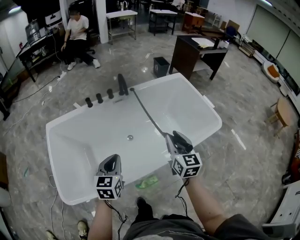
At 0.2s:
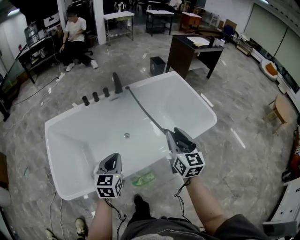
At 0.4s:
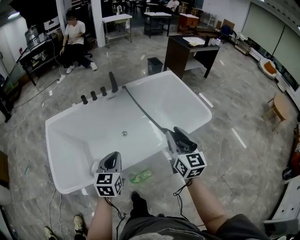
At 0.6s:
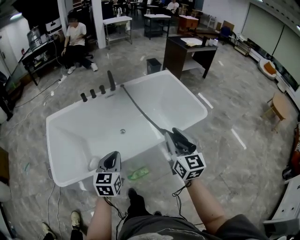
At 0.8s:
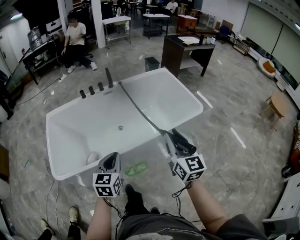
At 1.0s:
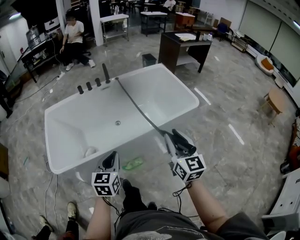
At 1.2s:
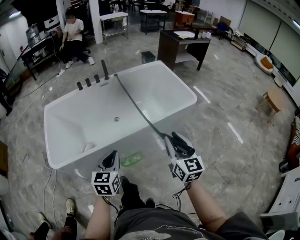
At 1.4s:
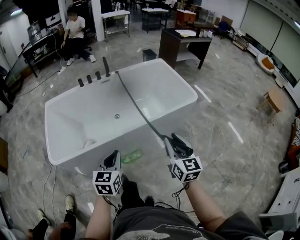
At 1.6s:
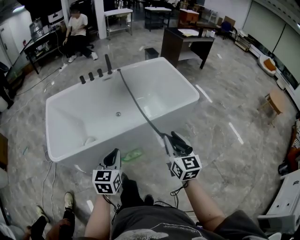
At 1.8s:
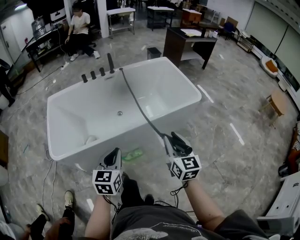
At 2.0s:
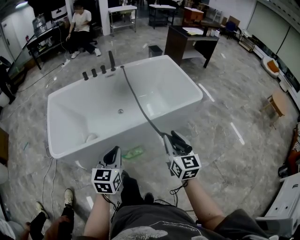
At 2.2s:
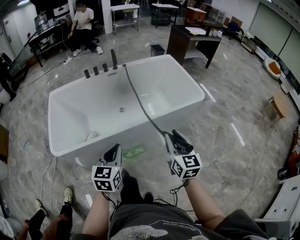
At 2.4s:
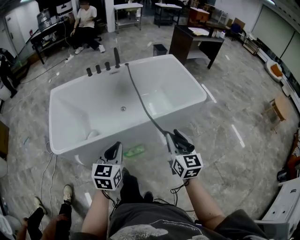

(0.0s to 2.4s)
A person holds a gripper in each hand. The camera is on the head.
0.0s - 1.2s: Both grippers travel together backward and to the right, some 35 cm.
1.2s - 2.4s: There are only small adjustments of the grippers.

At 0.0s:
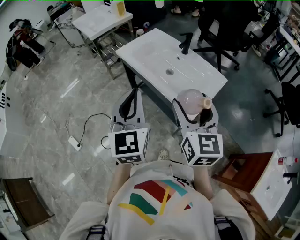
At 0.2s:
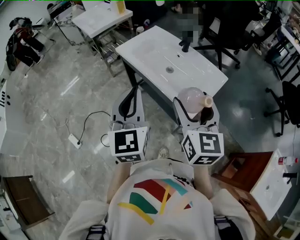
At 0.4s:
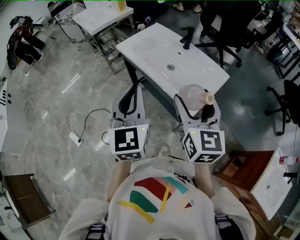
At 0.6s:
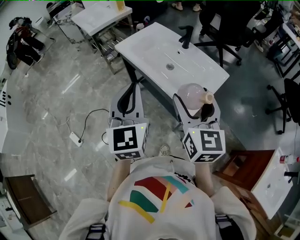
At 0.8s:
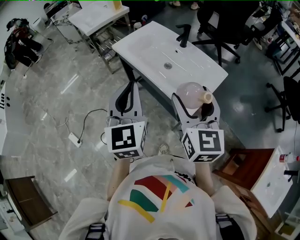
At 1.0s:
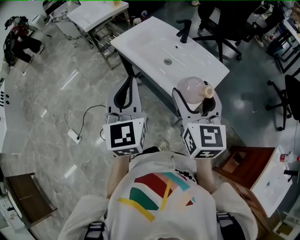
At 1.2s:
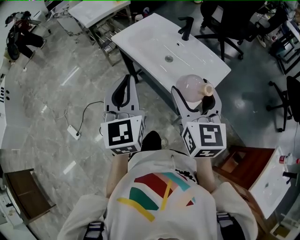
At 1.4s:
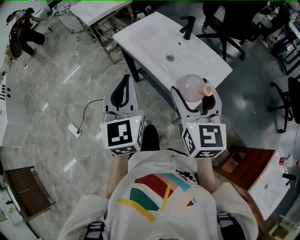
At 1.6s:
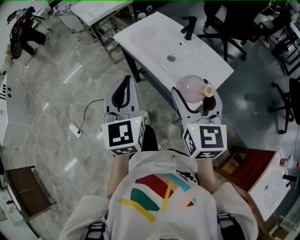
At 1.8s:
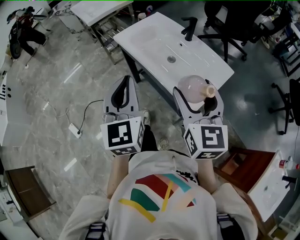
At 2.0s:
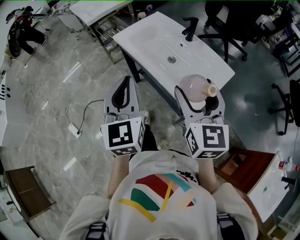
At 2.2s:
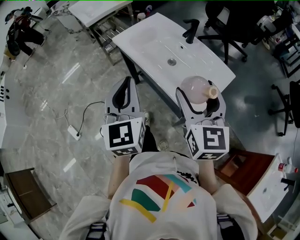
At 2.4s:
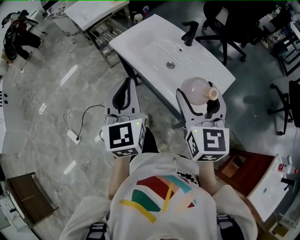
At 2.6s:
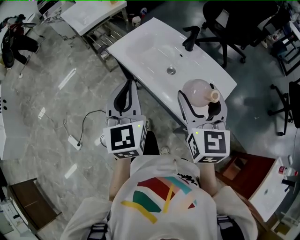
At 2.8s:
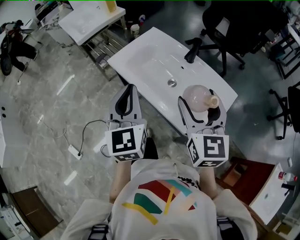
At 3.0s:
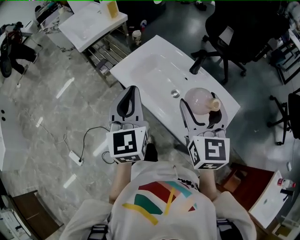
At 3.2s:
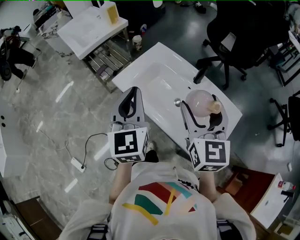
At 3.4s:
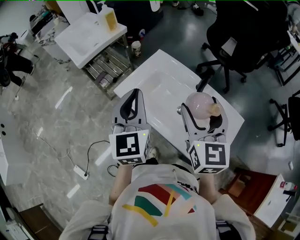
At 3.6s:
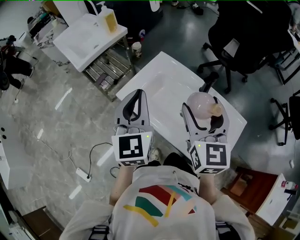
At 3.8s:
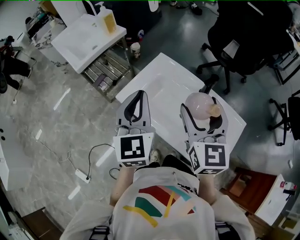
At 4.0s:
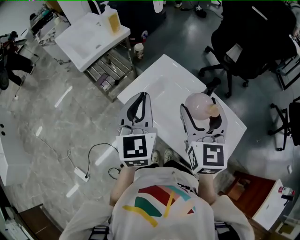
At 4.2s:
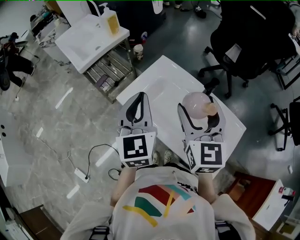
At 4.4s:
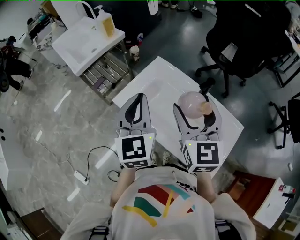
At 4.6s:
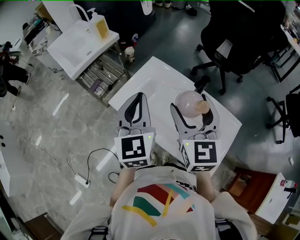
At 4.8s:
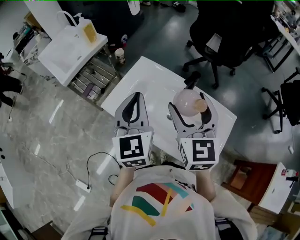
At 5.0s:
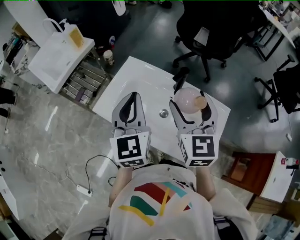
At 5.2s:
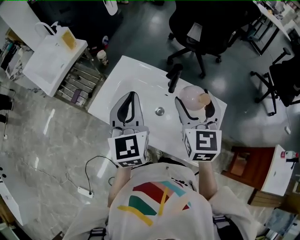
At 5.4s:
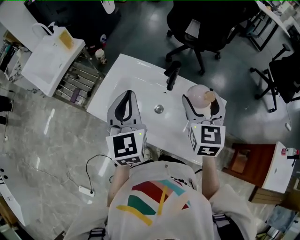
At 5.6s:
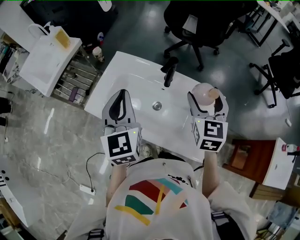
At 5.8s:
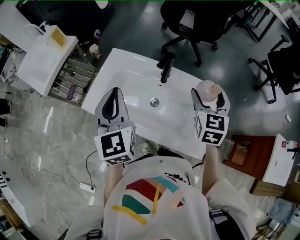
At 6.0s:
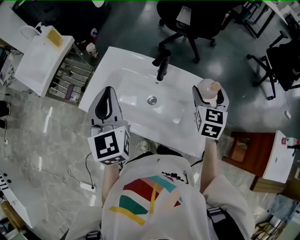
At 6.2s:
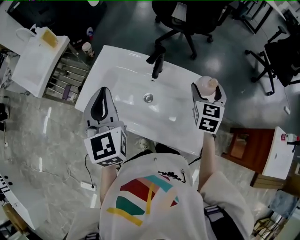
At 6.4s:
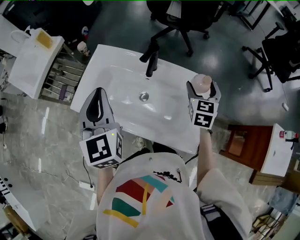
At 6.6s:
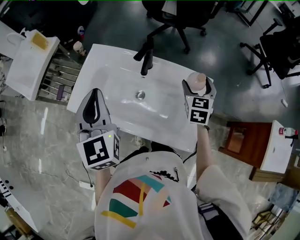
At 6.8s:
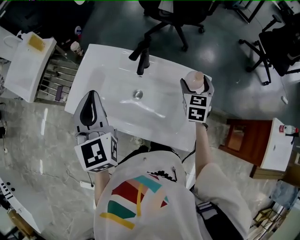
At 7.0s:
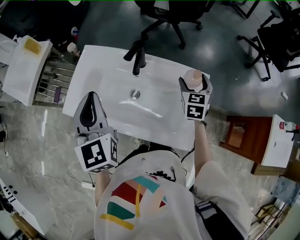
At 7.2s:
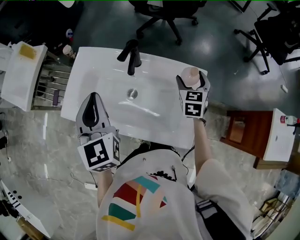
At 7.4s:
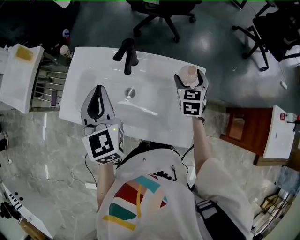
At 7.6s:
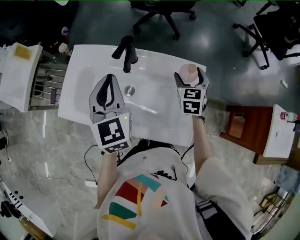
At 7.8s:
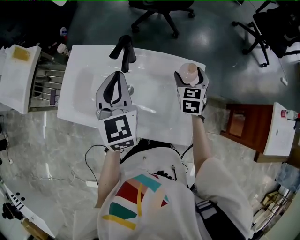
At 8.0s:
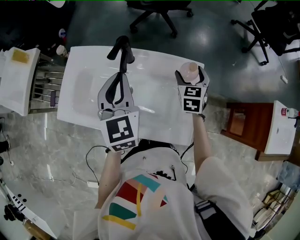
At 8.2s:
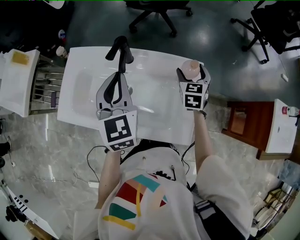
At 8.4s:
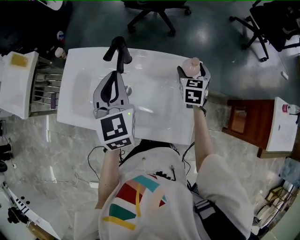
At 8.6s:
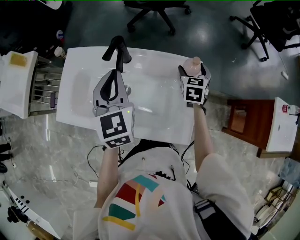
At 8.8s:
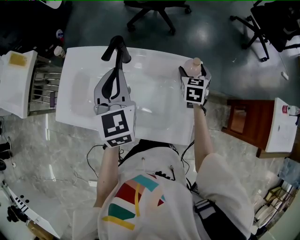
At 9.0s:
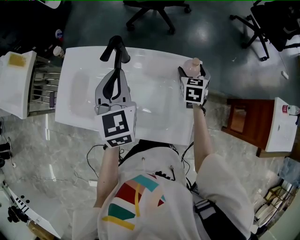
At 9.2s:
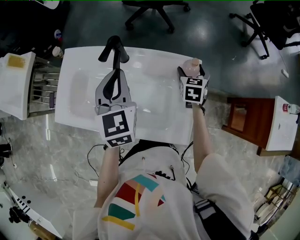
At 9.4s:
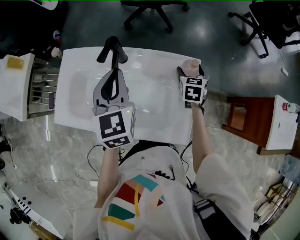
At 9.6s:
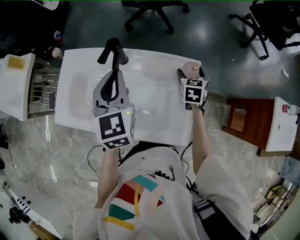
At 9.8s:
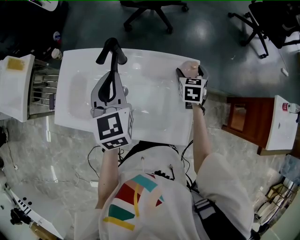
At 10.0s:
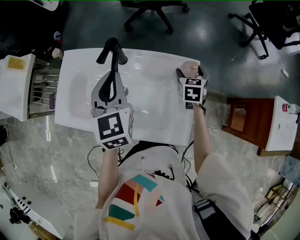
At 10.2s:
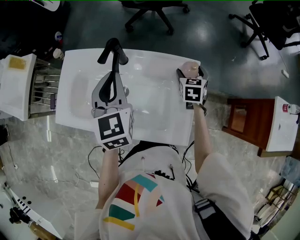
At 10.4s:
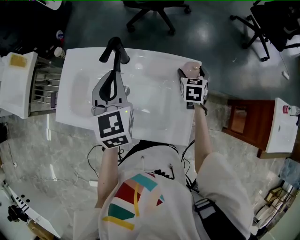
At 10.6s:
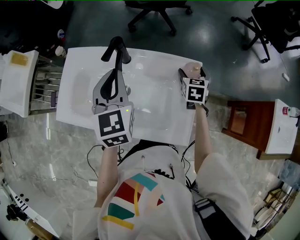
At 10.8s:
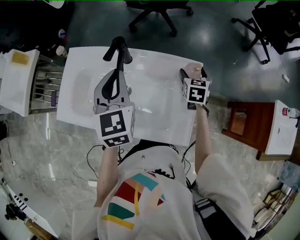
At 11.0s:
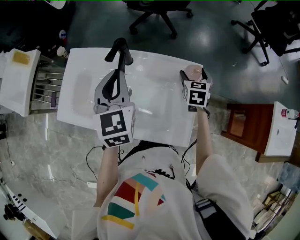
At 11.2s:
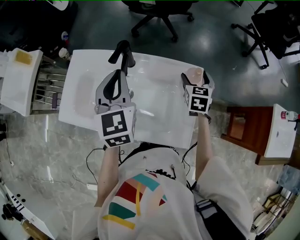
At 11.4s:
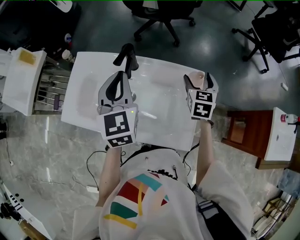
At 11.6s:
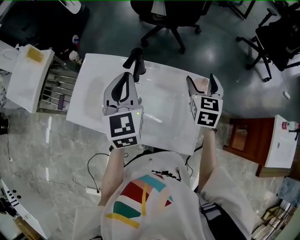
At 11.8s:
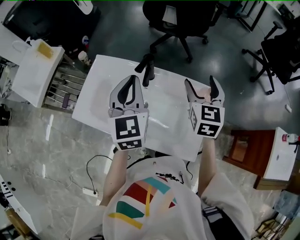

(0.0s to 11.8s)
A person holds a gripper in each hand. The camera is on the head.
0.0s - 1.4s: The grippers make only small movements.
1.4s - 3.0s: Both grippers move forward, about 20 cm.
3.0s - 4.4s: The right gripper heads forward and to the left, covering roughly 15 cm, while the left gripper travels forward by roughly 15 cm.
4.4s - 6.0s: The right gripper heads to the right and downward, covering approximately 30 cm, and rotates some 40 degrees. Meanwhile the left gripper shifts approximately 5 cm to the right.
6.0s - 7.4s: The left gripper moves to the right and downward, roughly 10 cm, while the right gripper is displaced downward and to the right by about 15 cm.
7.4s - 8.8s: The right gripper heads to the right, covering approximately 5 cm. Meanwhile the left gripper travels to the right and forward by approximately 10 cm.
8.8s - 10.4s: There are only small adjustments of the grippers.
10.4s - 11.8s: The left gripper goes roughly 5 cm upward, while the right gripper travels upward and to the left by approximately 25 cm, and turns by about 30 degrees.

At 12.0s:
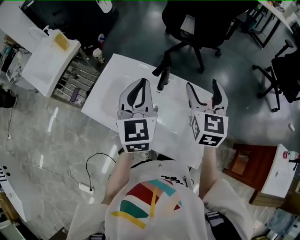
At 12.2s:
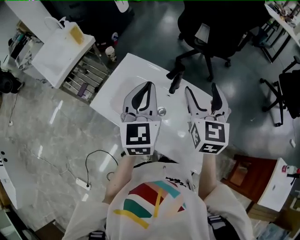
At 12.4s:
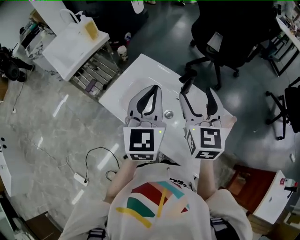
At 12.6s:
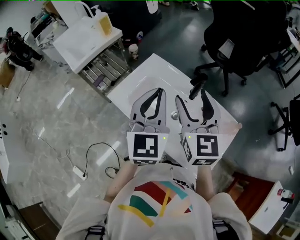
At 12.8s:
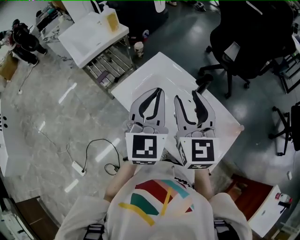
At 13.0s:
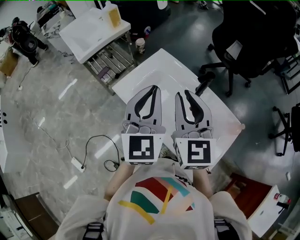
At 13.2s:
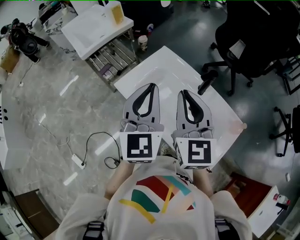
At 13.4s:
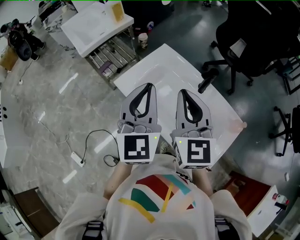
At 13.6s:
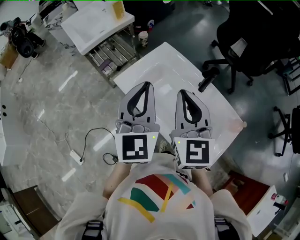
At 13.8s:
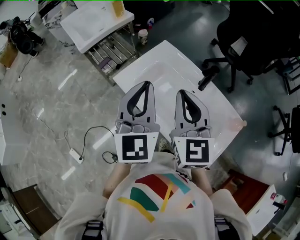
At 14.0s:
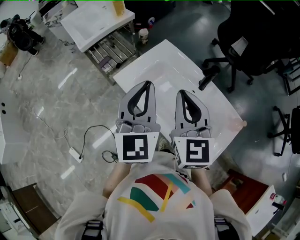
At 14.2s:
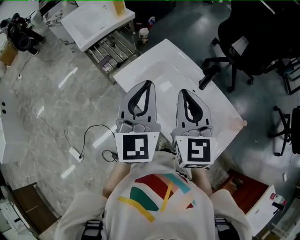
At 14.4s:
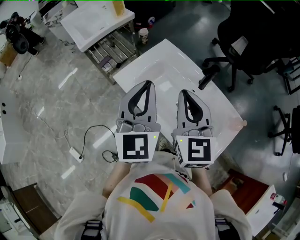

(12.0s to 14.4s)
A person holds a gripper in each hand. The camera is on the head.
12.0s - 13.2s: The left gripper moves to the left and backward, approximately 15 cm, while the right gripper heads to the left, covering about 25 cm, rotates approximately 30 degrees, and closes its fingers.
13.2s - 14.4s: The grippers make only small movements.

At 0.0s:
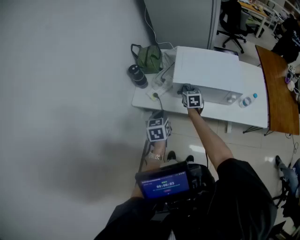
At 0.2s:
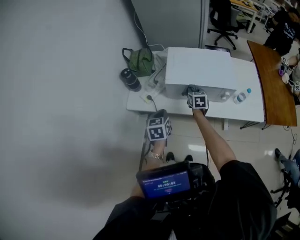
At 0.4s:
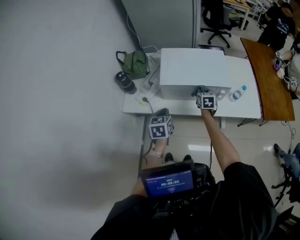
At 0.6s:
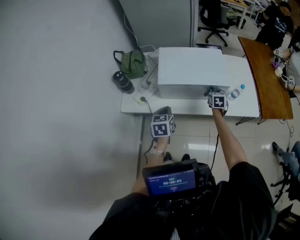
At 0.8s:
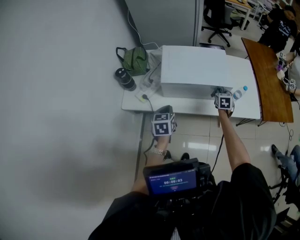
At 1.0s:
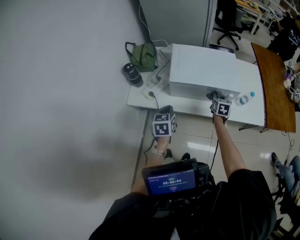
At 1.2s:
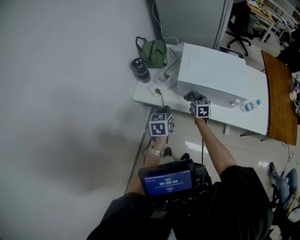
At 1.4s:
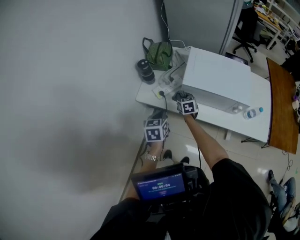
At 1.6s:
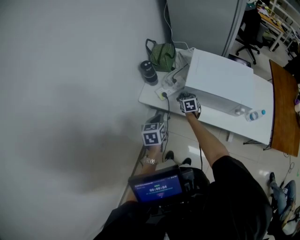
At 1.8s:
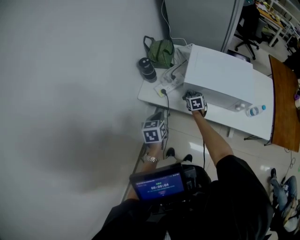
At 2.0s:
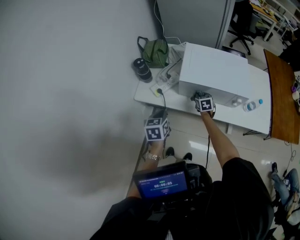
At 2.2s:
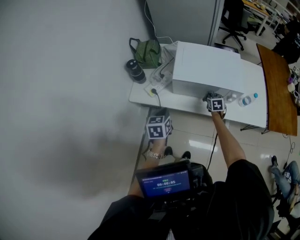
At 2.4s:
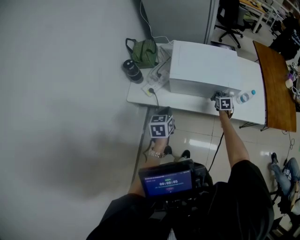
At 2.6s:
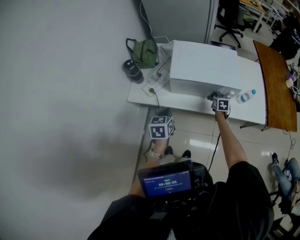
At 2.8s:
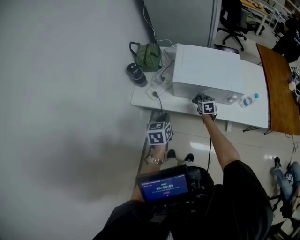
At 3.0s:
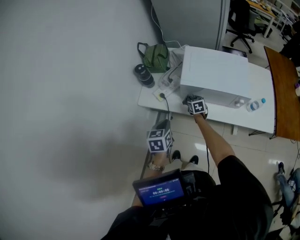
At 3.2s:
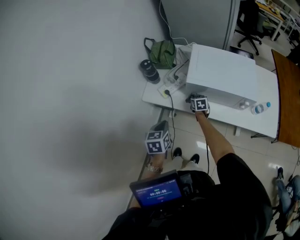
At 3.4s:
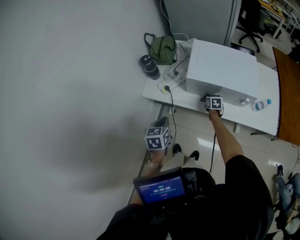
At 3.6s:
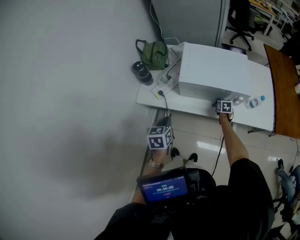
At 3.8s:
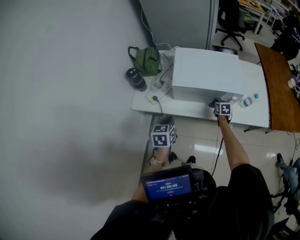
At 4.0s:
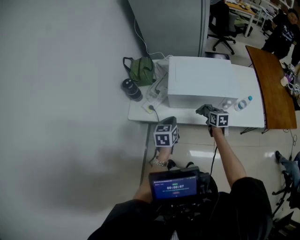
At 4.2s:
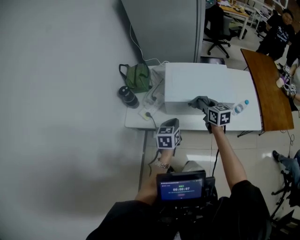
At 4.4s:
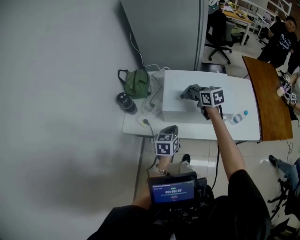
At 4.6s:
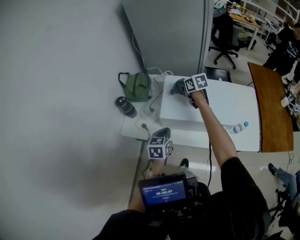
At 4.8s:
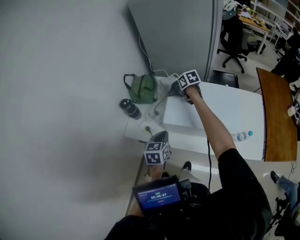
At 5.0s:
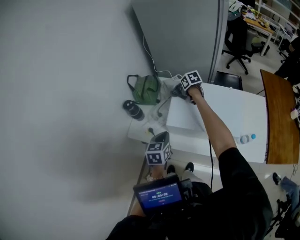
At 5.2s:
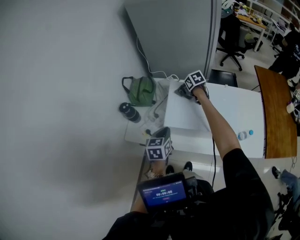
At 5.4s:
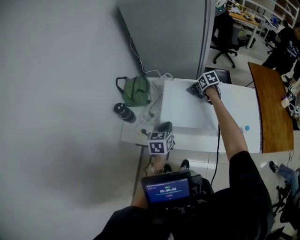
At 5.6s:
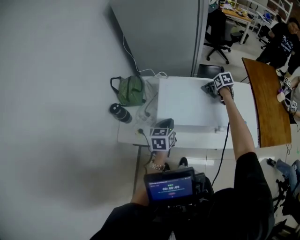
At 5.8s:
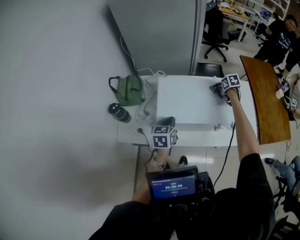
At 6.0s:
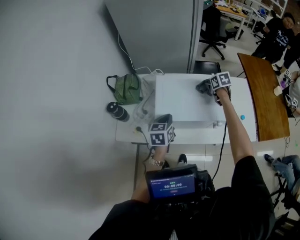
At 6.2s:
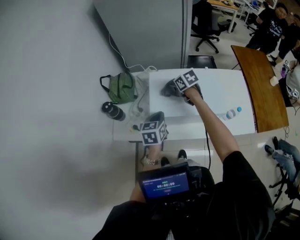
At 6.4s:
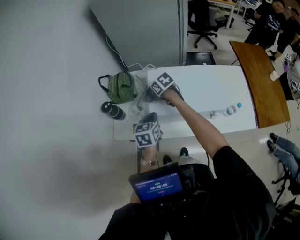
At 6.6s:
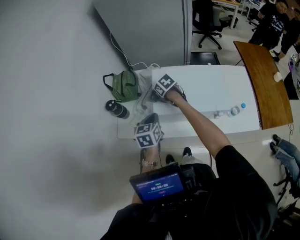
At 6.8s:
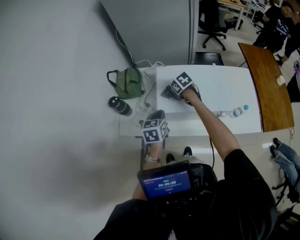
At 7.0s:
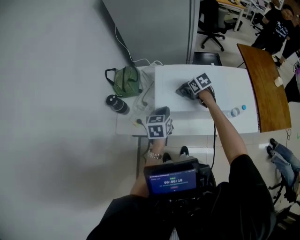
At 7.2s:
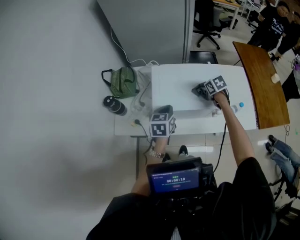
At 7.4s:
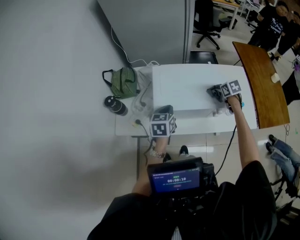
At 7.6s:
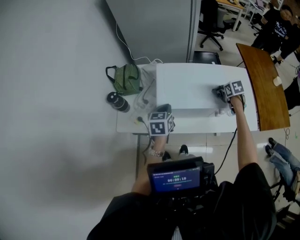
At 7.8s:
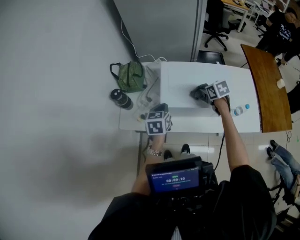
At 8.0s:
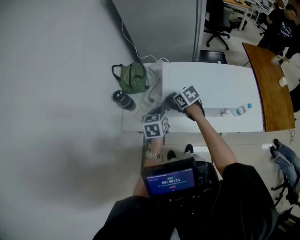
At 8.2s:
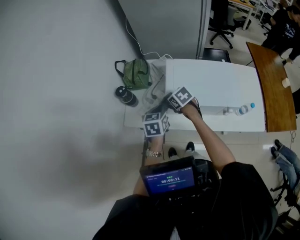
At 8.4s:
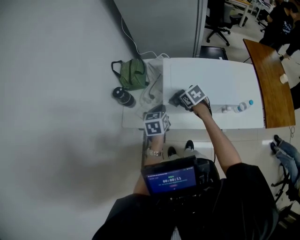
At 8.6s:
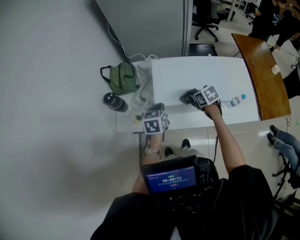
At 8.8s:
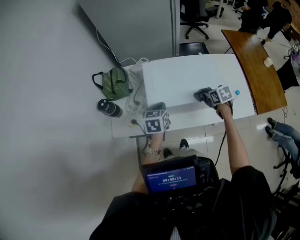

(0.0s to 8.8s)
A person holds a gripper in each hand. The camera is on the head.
1.4s - 3.0s: The right gripper moves downward, approximately 5 cm, and reaches roughly 35 cm to the right, then returns. The left gripper travels to the right and back again, about 10 cm each way.
3.0s - 4.4s: The left gripper moves to the right and forward, roughly 15 cm. The right gripper heads upward and to the right, covering roughly 30 cm.
4.4s - 5.8s: The right gripper ends up some 30 cm from where it was, and angles its fingers downward, by roughly 30 degrees, while the left gripper changes place by approximately 10 cm.
